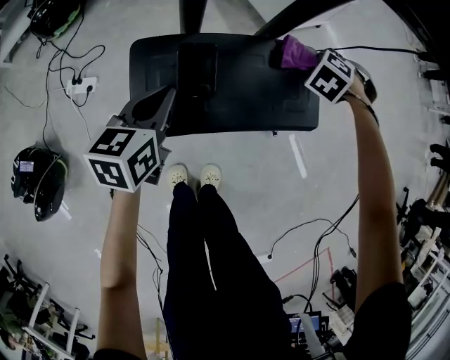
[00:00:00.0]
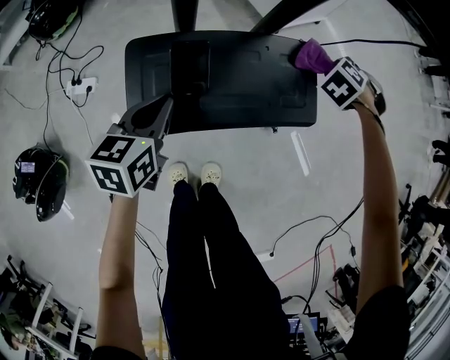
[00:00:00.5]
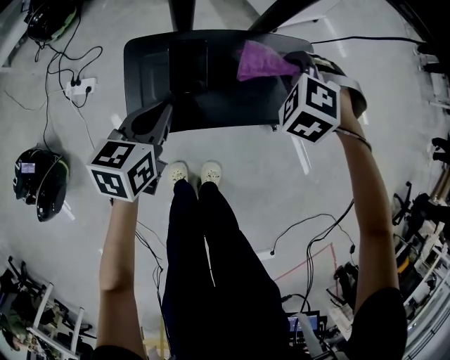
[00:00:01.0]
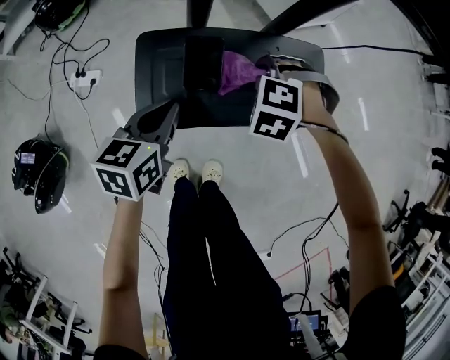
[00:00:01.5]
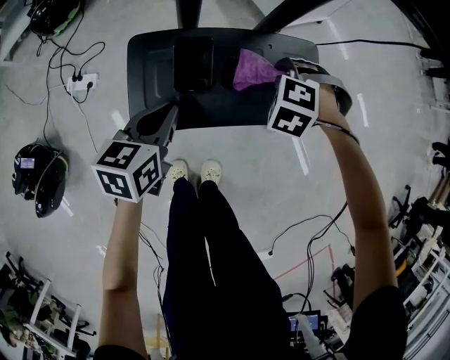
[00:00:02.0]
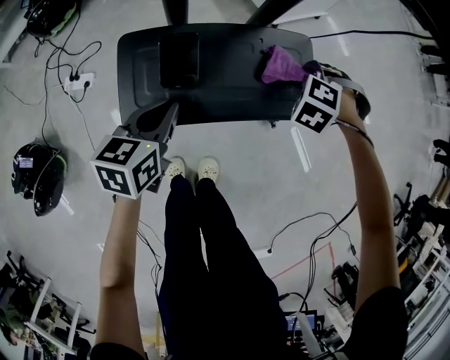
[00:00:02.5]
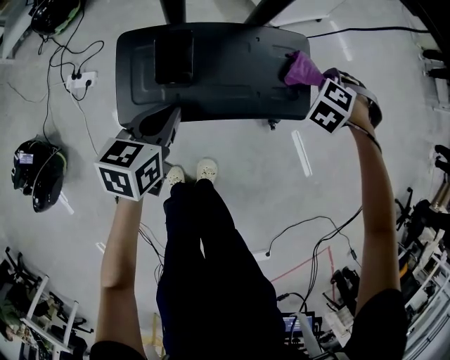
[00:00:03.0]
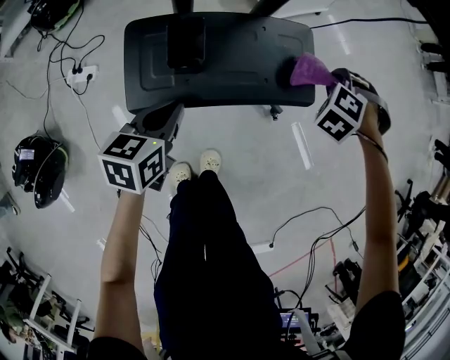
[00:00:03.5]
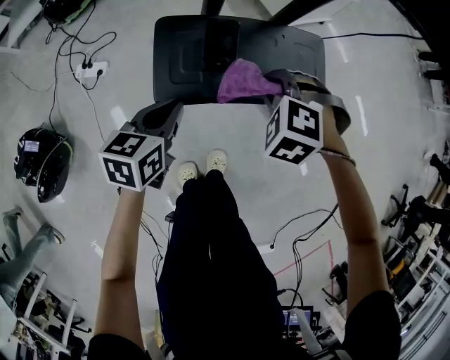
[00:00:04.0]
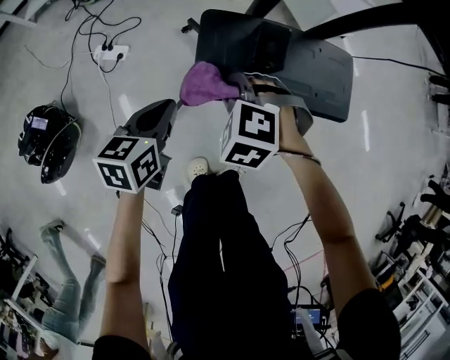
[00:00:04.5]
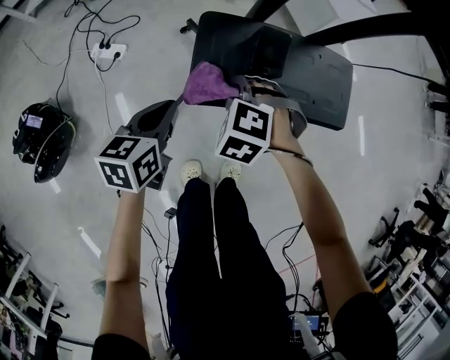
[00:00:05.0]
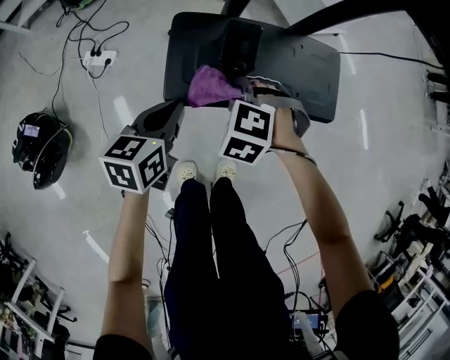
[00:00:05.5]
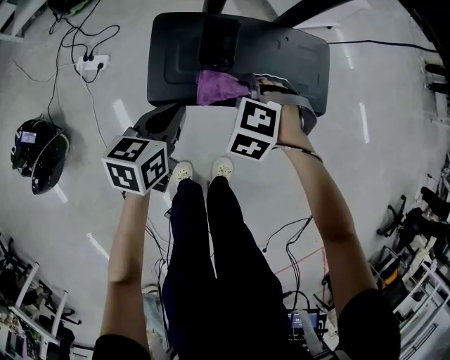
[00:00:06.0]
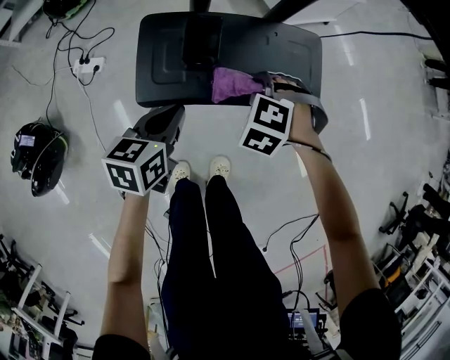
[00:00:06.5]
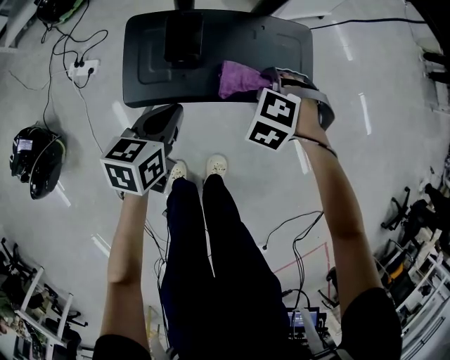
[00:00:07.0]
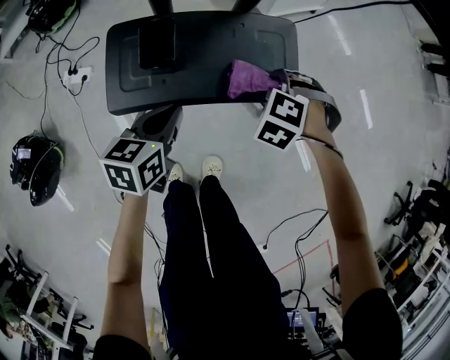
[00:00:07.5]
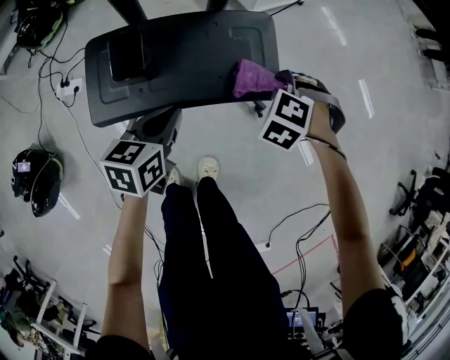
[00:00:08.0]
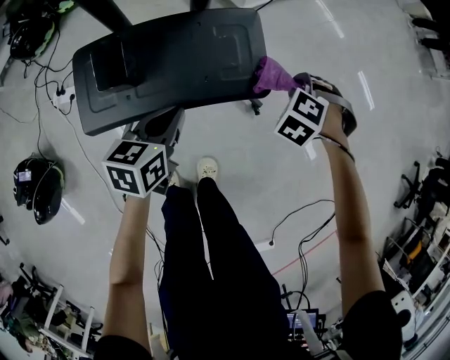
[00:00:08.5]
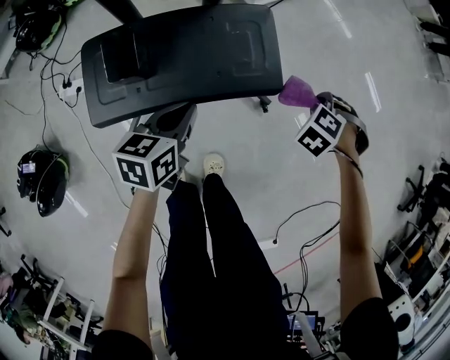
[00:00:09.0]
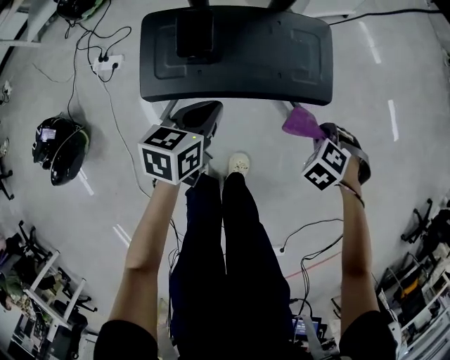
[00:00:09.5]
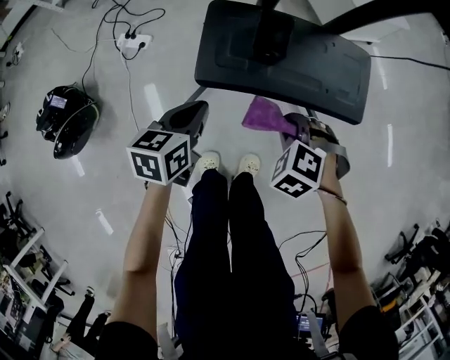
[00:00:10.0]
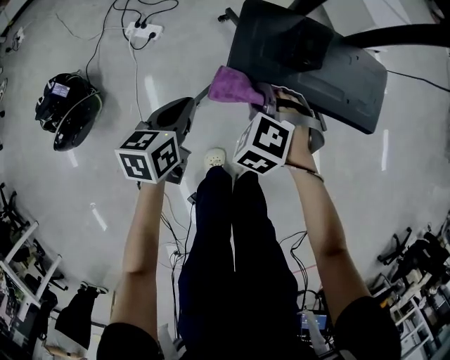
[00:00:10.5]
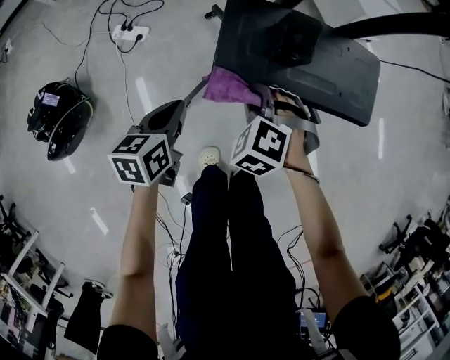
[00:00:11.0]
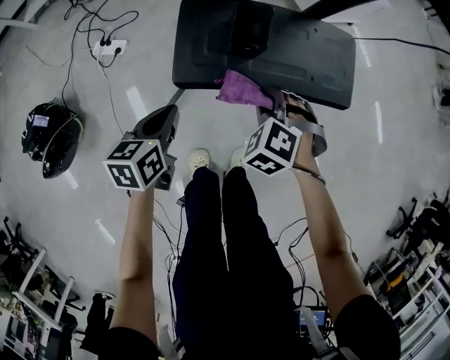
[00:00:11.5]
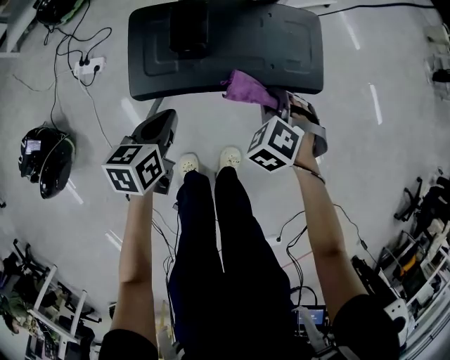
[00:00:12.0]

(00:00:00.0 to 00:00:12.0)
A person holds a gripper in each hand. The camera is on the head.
00:00:00.0 - 00:00:02.0: The left gripper moves roughly 5 cm. Meanwhile the right gripper is displaced backward and to the left by some 15 cm.
00:00:02.0 - 00:00:04.0: The right gripper changes place by approximately 15 cm. The left gripper ends up roughly 5 cm from where it was.
00:00:04.0 - 00:00:06.0: The right gripper goes roughly 5 cm downward, and reaches roughly 15 cm to the left, then returns. The left gripper travels to the left and back again, roughly 10 cm each way.
00:00:06.0 - 00:00:08.0: The right gripper goes some 25 cm to the right and forward. The left gripper goes approximately 15 cm to the right and forward.
00:00:08.0 - 00:00:10.0: The right gripper shifts by some 25 cm, while the left gripper ends up about 20 cm from where it was.
00:00:10.0 - 00:00:12.0: The right gripper is displaced forward by approximately 5 cm, travels to the left and back again, some 15 cm each way, and changes its angle by some 20 degrees. The left gripper travels to the right by some 5 cm.

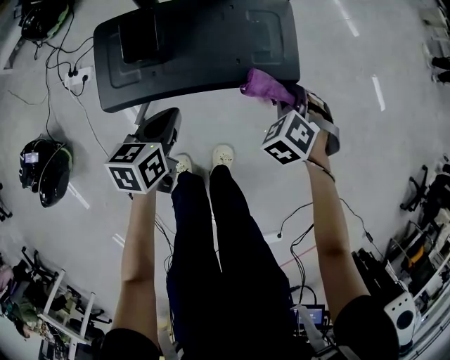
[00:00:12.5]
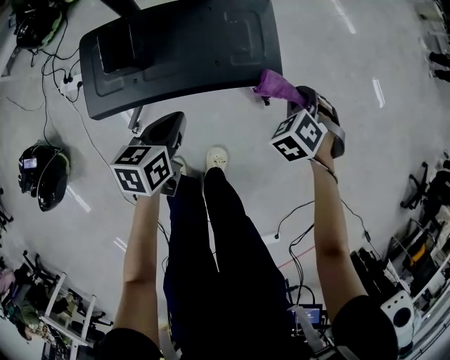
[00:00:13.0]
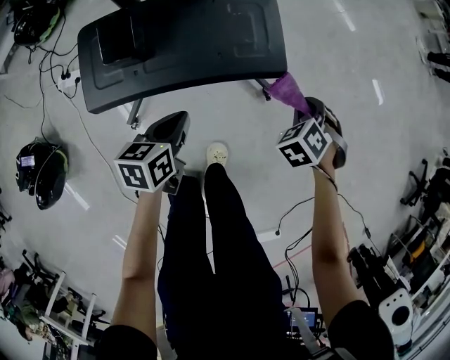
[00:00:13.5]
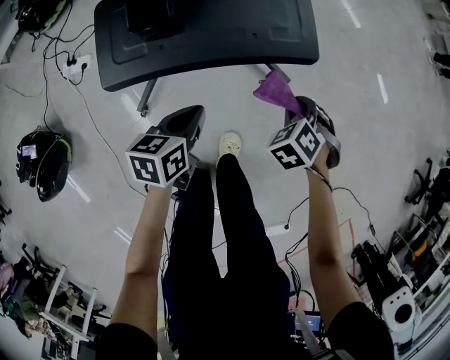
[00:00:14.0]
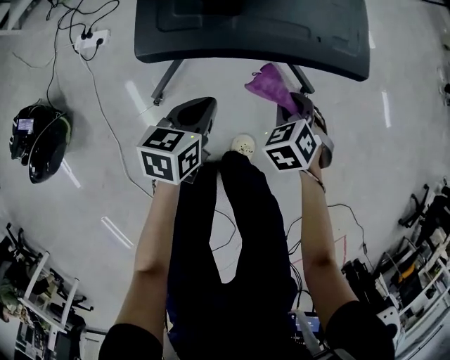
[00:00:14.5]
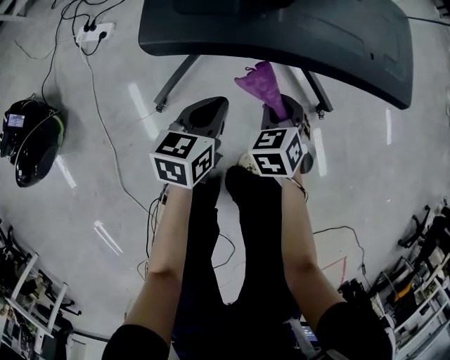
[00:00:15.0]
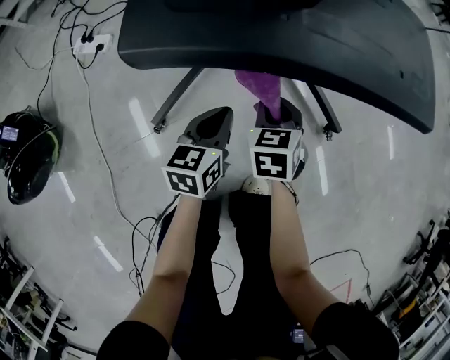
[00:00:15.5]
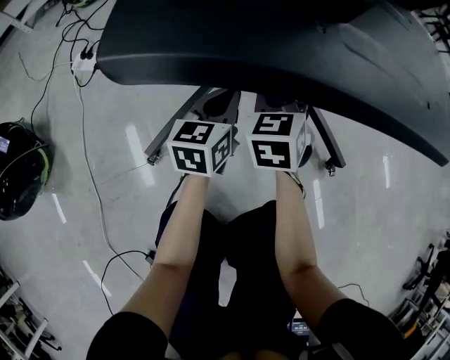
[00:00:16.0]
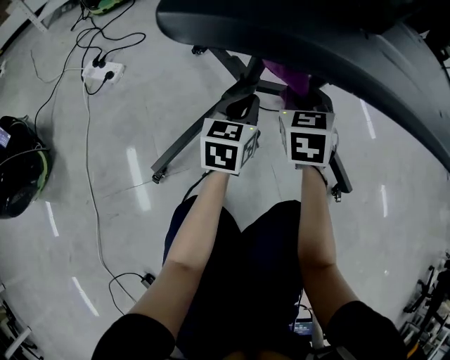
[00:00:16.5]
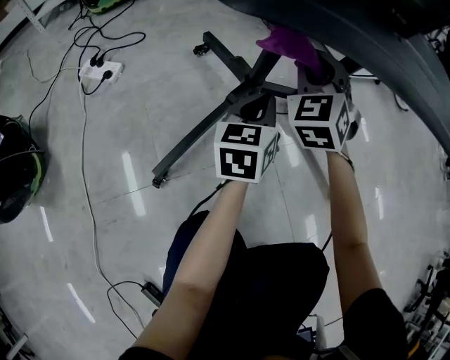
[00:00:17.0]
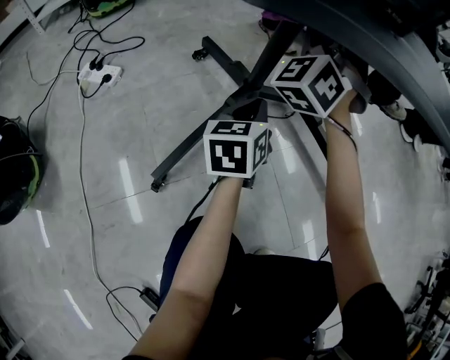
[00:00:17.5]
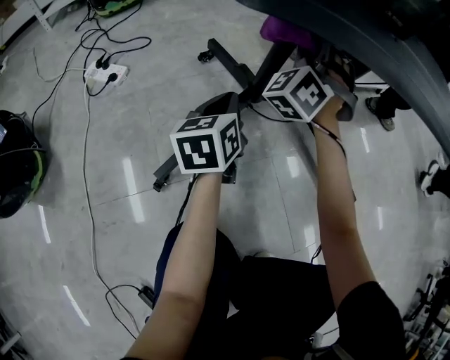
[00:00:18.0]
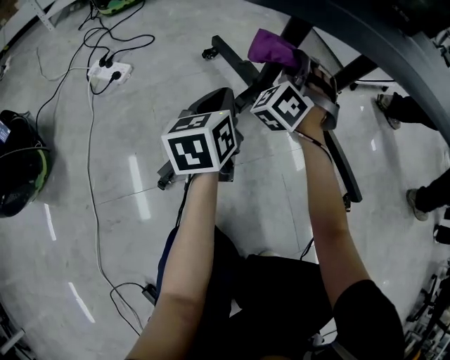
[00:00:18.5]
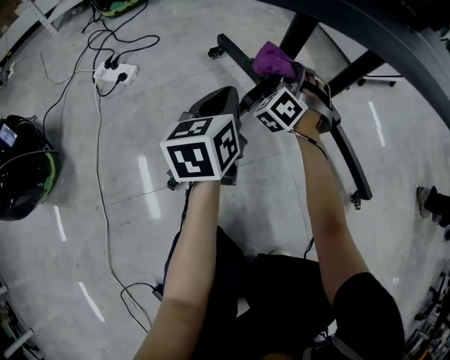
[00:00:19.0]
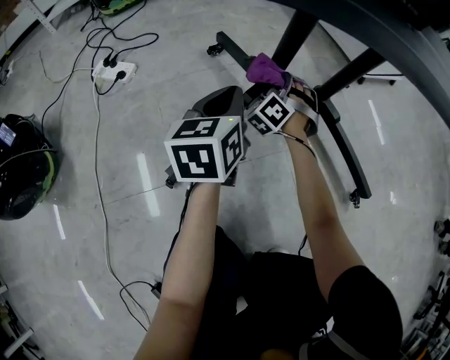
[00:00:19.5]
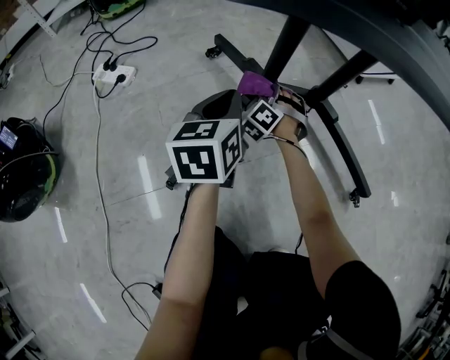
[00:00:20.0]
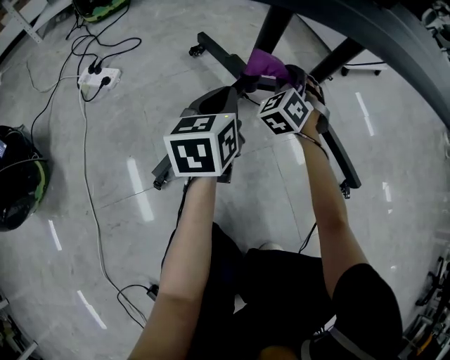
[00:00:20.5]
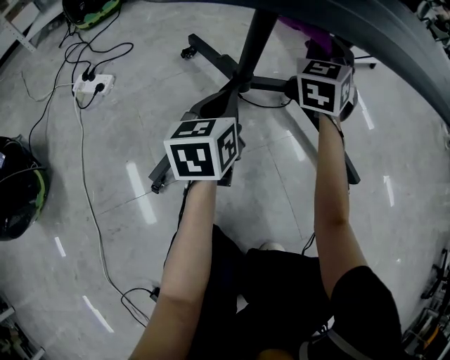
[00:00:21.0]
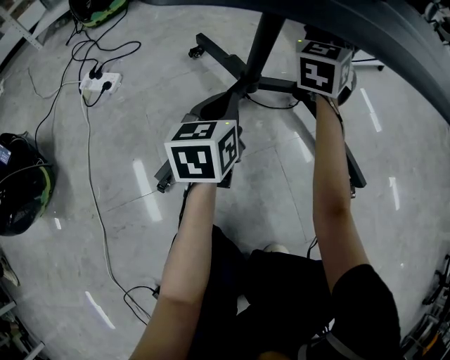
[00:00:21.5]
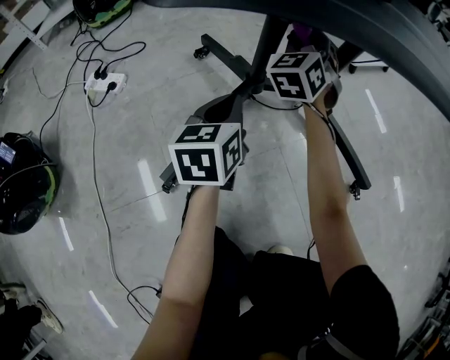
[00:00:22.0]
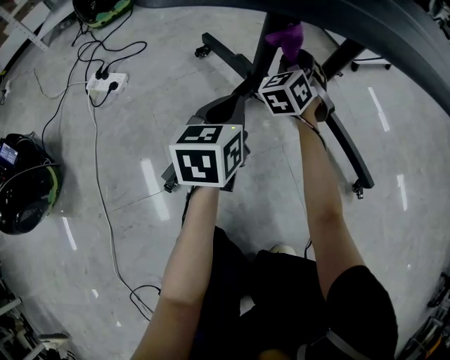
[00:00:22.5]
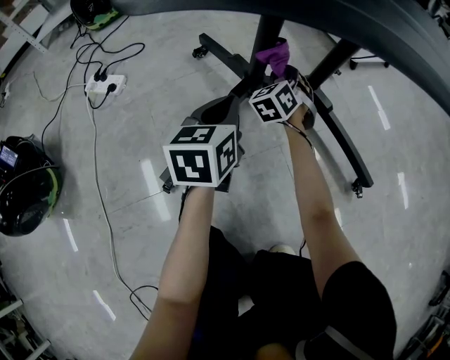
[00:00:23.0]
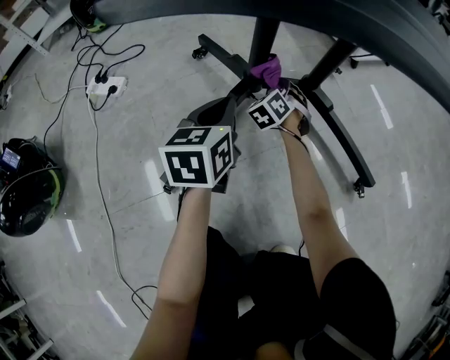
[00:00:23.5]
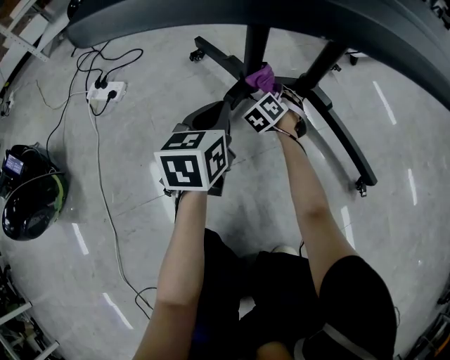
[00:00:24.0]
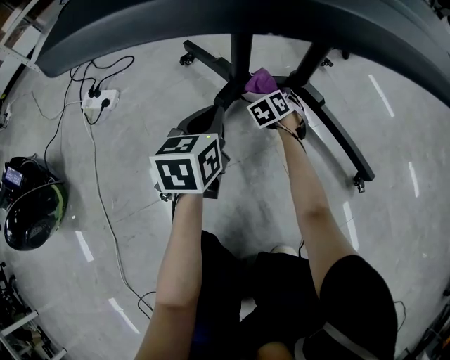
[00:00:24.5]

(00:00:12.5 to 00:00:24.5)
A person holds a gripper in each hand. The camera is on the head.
00:00:12.5 - 00:00:14.5: The right gripper heads backward, downward and to the left, covering some 15 cm. Meanwhile the left gripper heads downward and backward, covering some 10 cm.
00:00:14.5 - 00:00:16.5: The left gripper is displaced downward and forward by roughly 30 cm, and turns by approximately 30 degrees. The right gripper heads forward, to the left and downward, covering roughly 30 cm, and tilts its fingers roughly 30 degrees upward.
00:00:16.5 - 00:00:18.5: The left gripper heads to the left, covering roughly 10 cm; the right gripper heads to the left and forward, covering some 10 cm, travels upward and back again, about 15 cm each way, and twists some 50 degrees counterclockwise, seen from behind.
00:00:18.5 - 00:00:20.5: The right gripper goes approximately 10 cm downward and to the right.
00:00:20.5 - 00:00:22.5: The right gripper reaches roughly 15 cm upward, then returns.
00:00:22.5 - 00:00:24.5: The right gripper travels downward by some 20 cm, and rotates some 30 degrees.

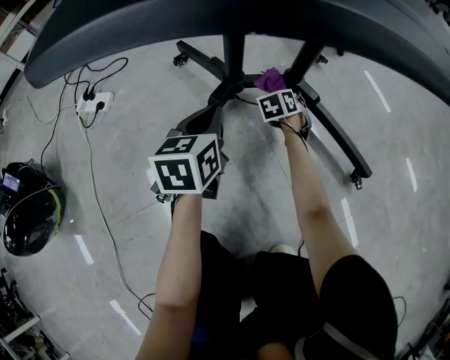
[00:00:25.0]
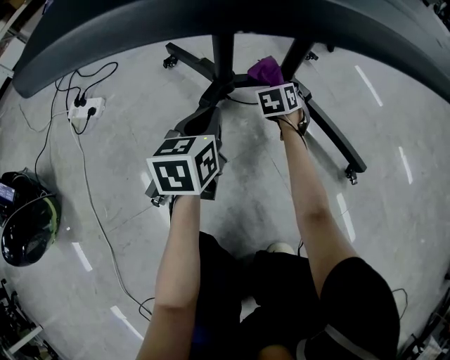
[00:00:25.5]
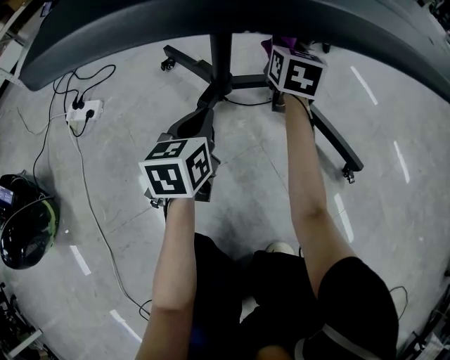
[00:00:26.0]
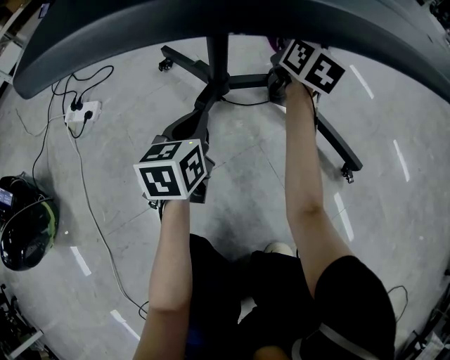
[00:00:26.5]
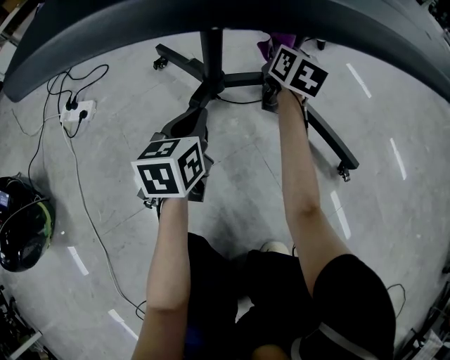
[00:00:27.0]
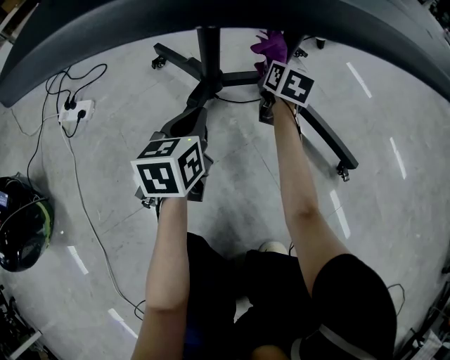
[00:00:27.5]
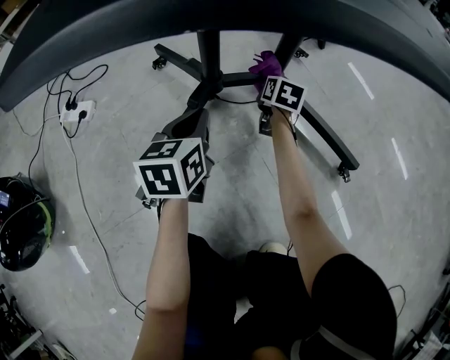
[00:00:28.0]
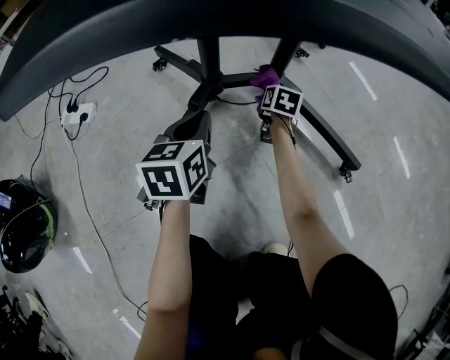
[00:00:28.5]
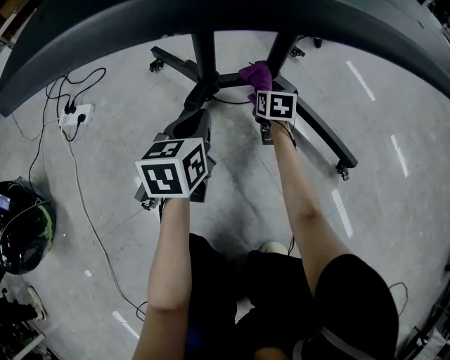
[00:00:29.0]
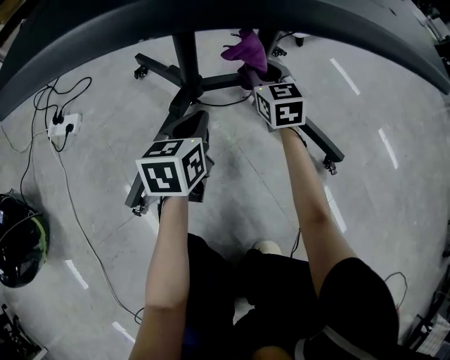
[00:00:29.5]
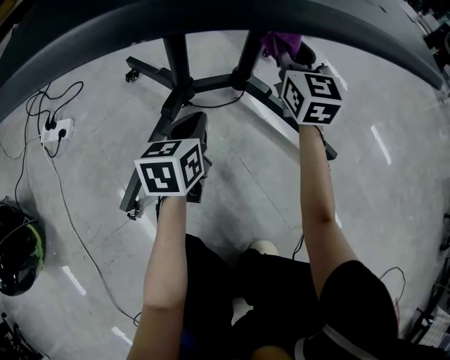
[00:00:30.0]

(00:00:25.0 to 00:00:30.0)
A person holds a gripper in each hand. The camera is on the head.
00:00:25.0 - 00:00:27.5: The right gripper shifts some 15 cm upward, and rolls clockwise, seen from behind, by some 40 degrees.
00:00:27.5 - 00:00:30.0: The left gripper moves to the right, approximately 5 cm, while the right gripper moves upward, roughly 20 cm, and rotates roughly 40 degrees.
